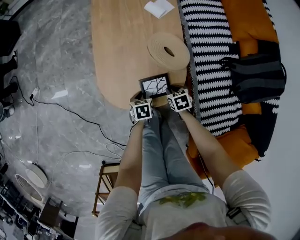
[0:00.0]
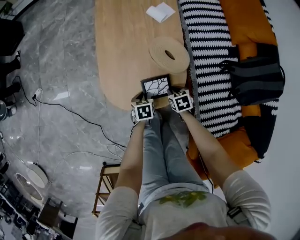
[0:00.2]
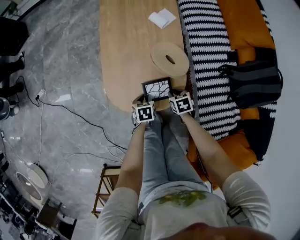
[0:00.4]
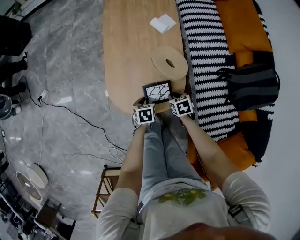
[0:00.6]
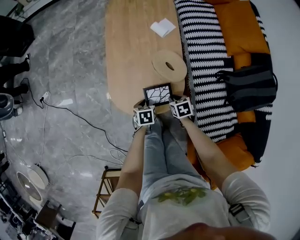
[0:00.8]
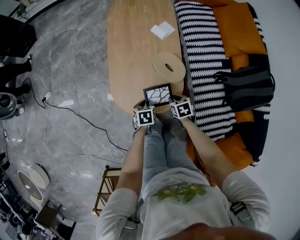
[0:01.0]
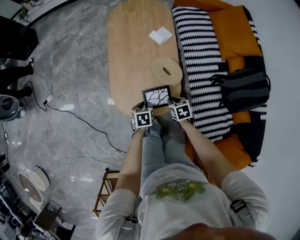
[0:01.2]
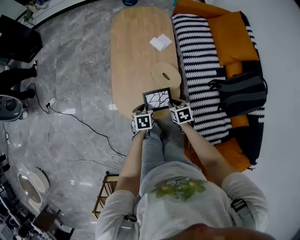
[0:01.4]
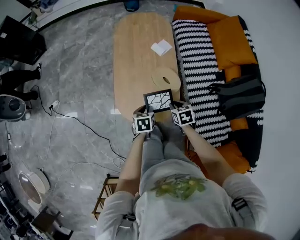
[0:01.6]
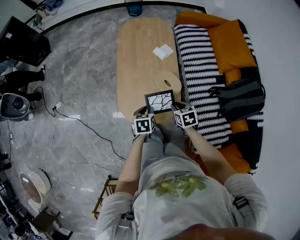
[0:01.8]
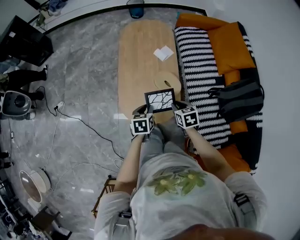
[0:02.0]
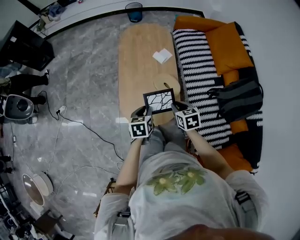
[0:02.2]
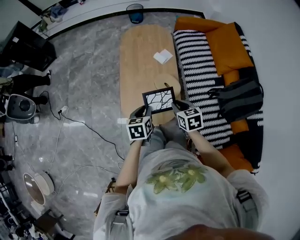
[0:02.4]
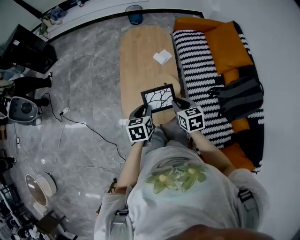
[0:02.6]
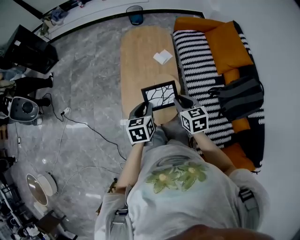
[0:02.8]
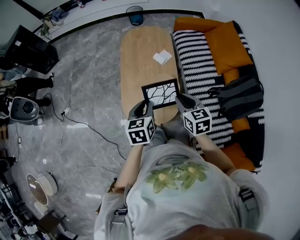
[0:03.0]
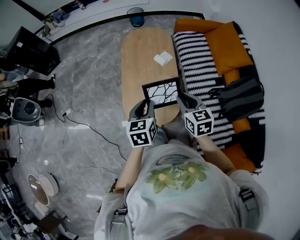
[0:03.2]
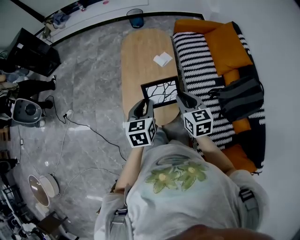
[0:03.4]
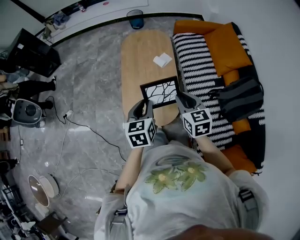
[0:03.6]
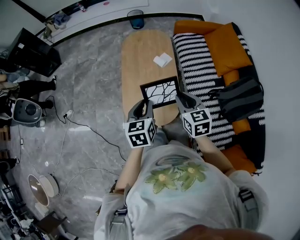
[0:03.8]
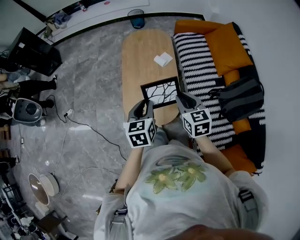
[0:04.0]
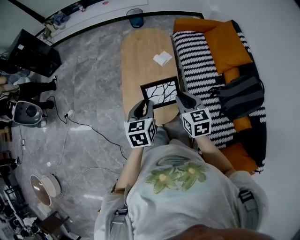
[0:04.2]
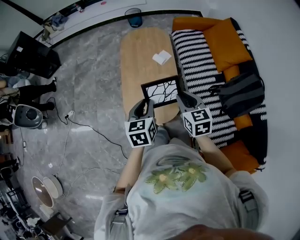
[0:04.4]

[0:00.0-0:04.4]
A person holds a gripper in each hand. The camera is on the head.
0.0 to 1.4 s: Both grippers travel together upward, roughly 20 cm.
1.4 to 3.0 s: The grippers both shift upward by approximately 30 cm. The right gripper turns by about 30 degrees, while the left gripper swivels about 20 degrees.
3.0 to 4.4 s: The grippers stay close to where they were, moving slightly.

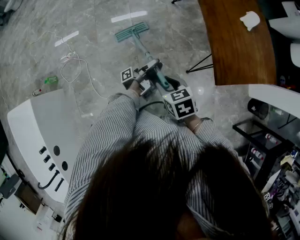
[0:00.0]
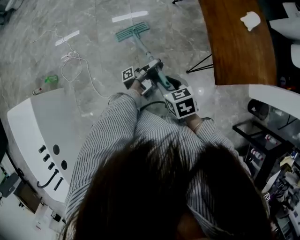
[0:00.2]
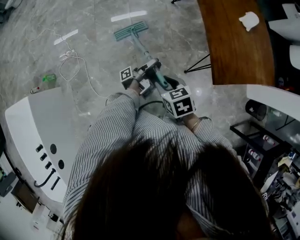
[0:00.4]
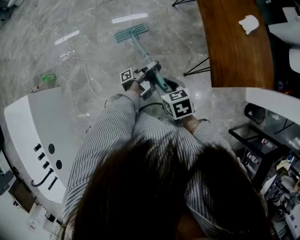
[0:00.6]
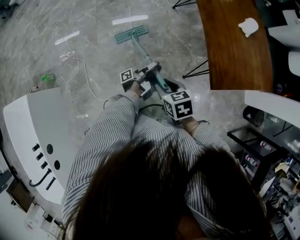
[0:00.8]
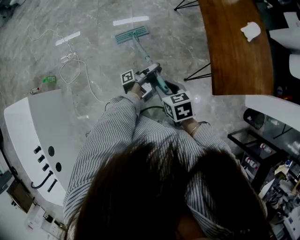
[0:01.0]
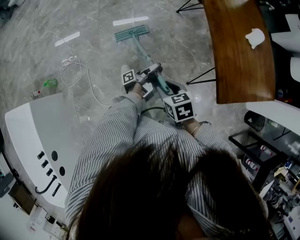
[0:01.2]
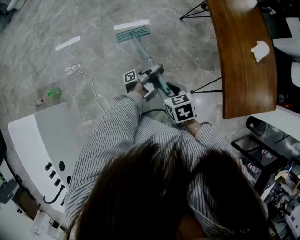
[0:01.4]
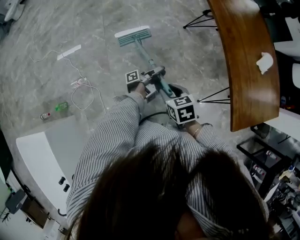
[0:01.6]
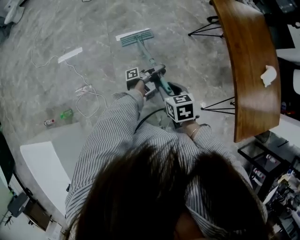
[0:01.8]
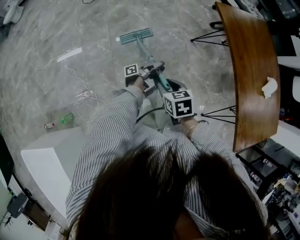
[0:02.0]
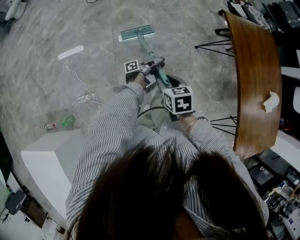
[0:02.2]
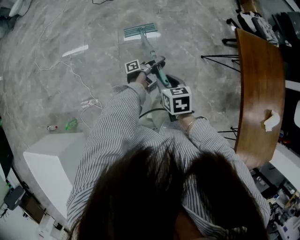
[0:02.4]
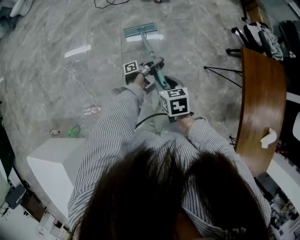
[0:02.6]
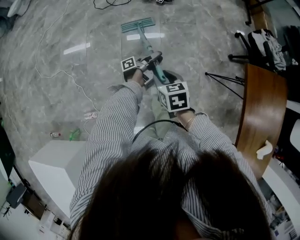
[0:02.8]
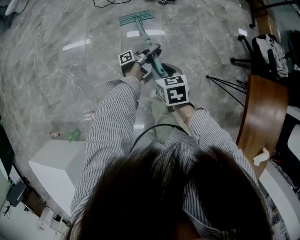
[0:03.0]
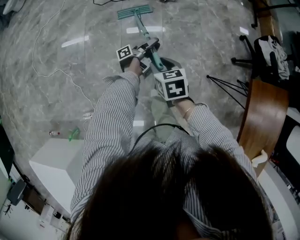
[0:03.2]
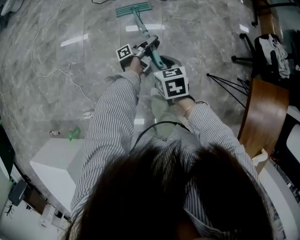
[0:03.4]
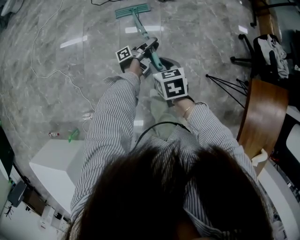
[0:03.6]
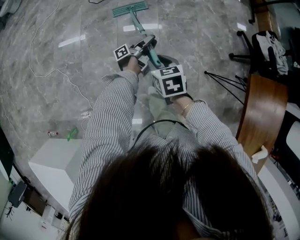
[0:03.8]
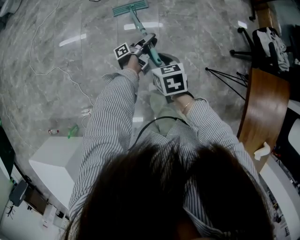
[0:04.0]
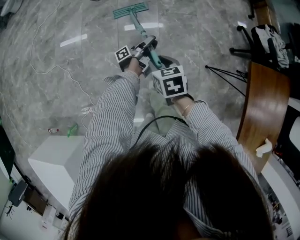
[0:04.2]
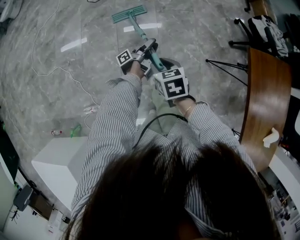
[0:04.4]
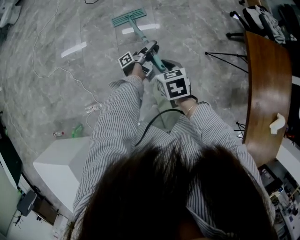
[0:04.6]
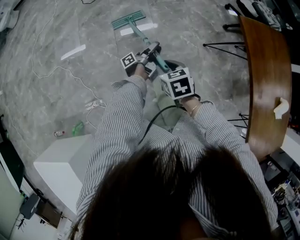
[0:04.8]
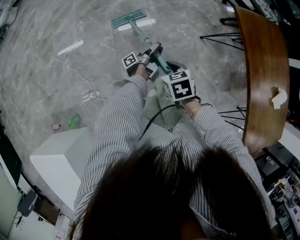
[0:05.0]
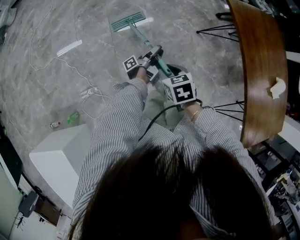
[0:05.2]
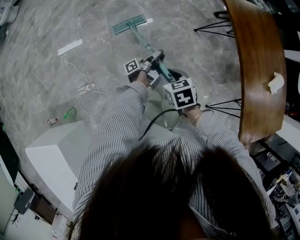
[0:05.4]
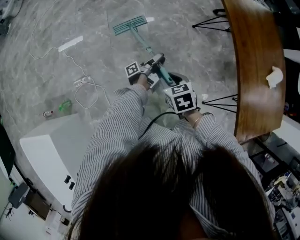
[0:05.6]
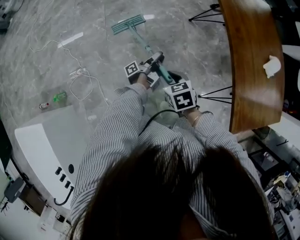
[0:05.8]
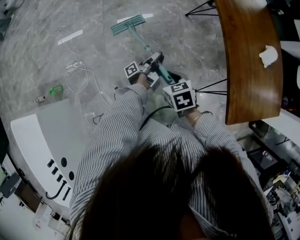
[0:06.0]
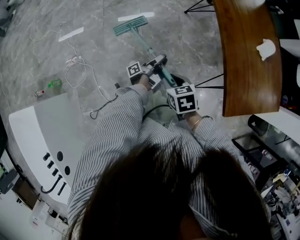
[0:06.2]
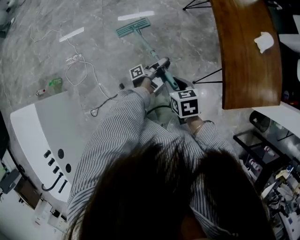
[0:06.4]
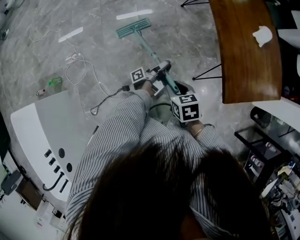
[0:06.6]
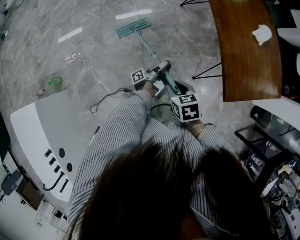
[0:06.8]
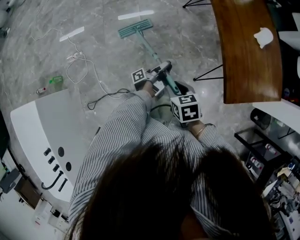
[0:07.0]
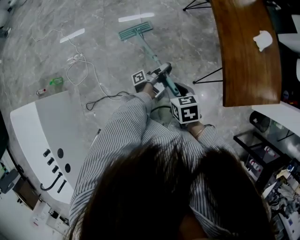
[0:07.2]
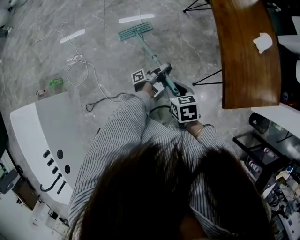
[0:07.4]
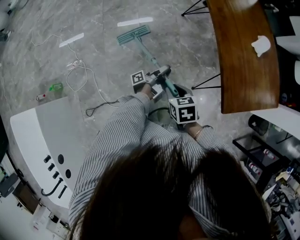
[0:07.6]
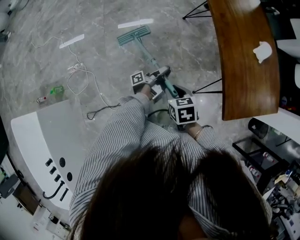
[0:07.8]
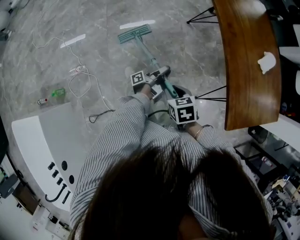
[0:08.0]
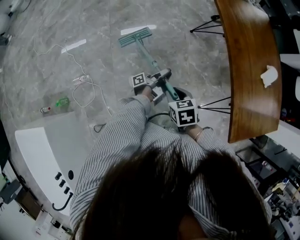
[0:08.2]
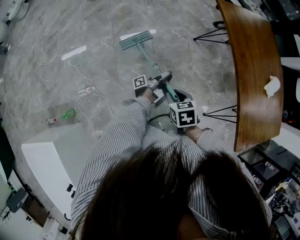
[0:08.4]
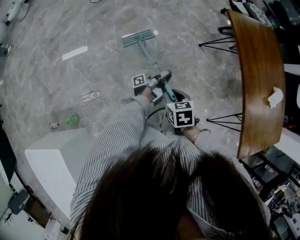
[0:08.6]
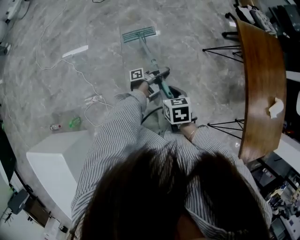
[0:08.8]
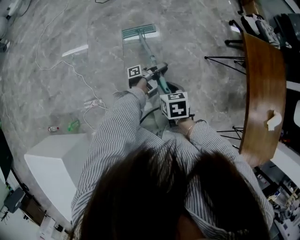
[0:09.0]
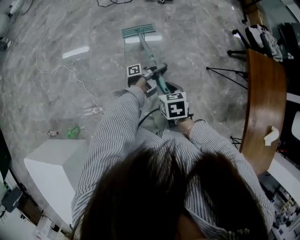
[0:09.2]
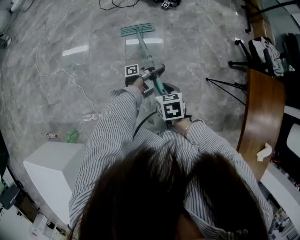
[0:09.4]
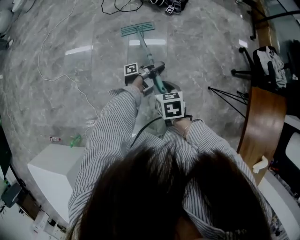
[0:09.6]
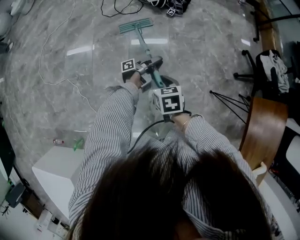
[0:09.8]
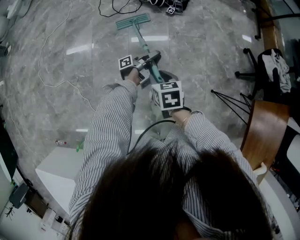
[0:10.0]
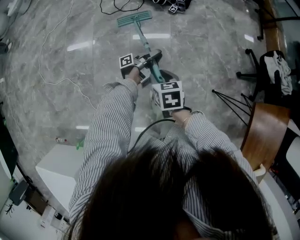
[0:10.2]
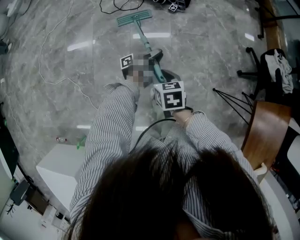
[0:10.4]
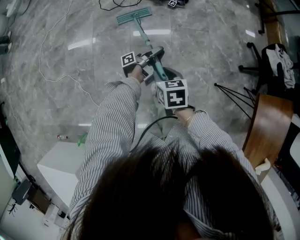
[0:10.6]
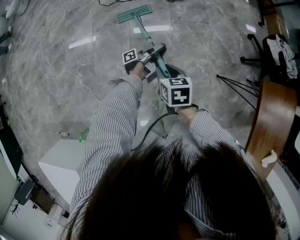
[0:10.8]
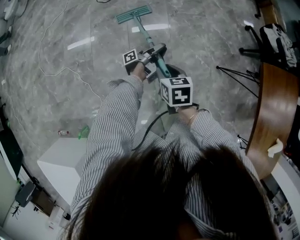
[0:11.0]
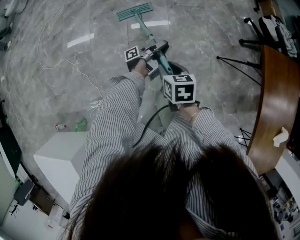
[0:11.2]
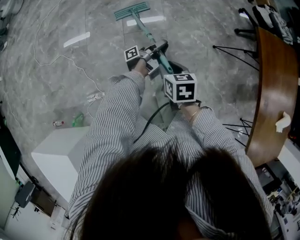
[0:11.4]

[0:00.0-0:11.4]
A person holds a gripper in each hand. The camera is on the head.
0.0 to 1.4 s: The right gripper moves some 15 cm.
1.4 to 2.8 s: The right gripper ends up approximately 70 cm from where it was.
4.2 to 5.6 s: The right gripper changes place by about 50 cm.
5.6 to 7.2 s: The right gripper shifts by approximately 35 cm.
7.2 to 8.6 s: The right gripper shifts by approximately 40 cm.
8.6 to 10.0 s: The right gripper shifts by approximately 60 cm.
10.0 to 11.4 s: The right gripper shifts by roughly 35 cm.

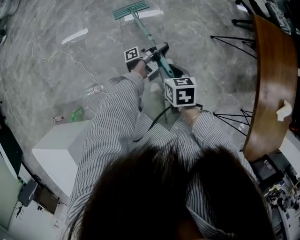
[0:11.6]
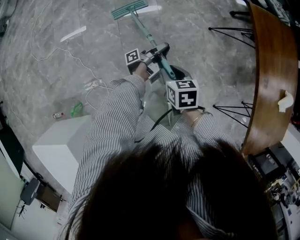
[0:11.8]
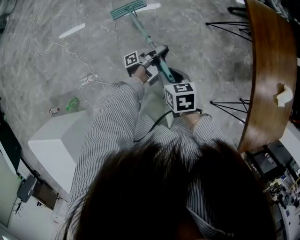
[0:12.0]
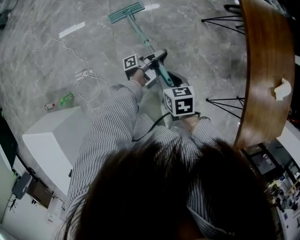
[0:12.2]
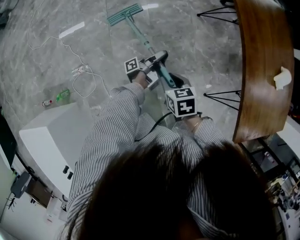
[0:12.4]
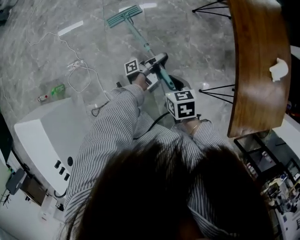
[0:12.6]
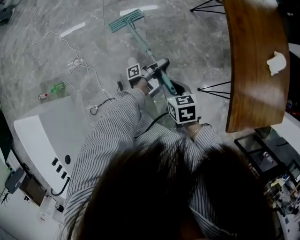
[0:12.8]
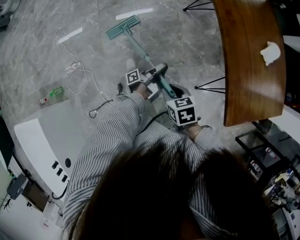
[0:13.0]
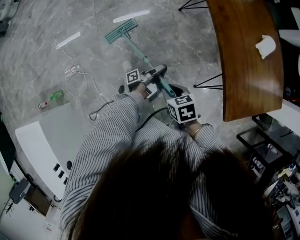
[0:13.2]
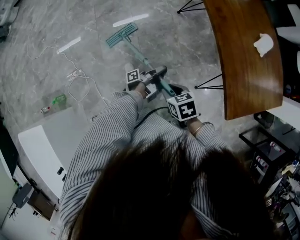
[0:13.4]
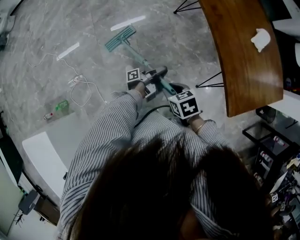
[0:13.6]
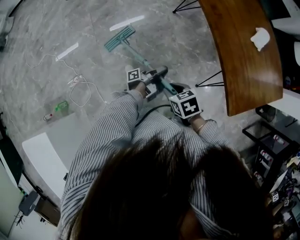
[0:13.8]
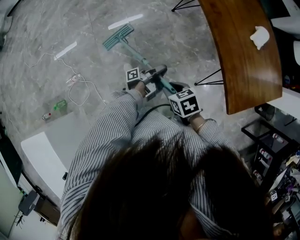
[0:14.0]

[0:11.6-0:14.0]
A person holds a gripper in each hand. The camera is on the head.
11.6 to 12.8 s: The right gripper ends up about 50 cm from where it was.
12.8 to 14.0 s: The right gripper shifts by roughly 5 cm.

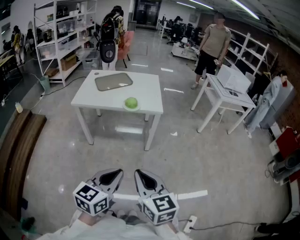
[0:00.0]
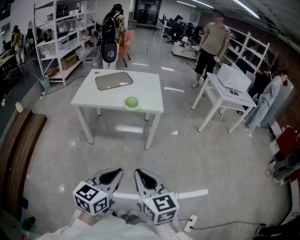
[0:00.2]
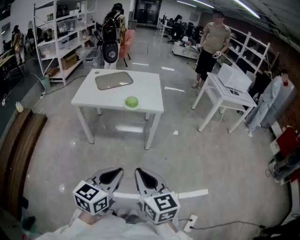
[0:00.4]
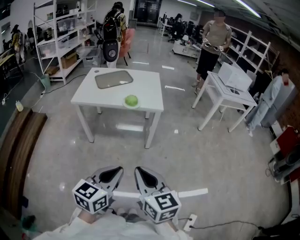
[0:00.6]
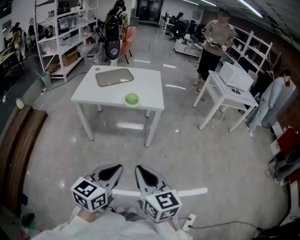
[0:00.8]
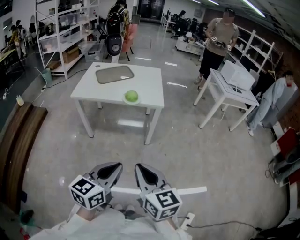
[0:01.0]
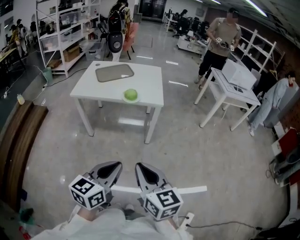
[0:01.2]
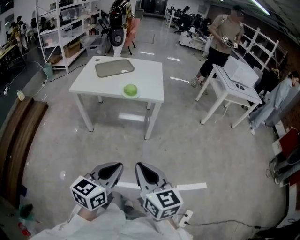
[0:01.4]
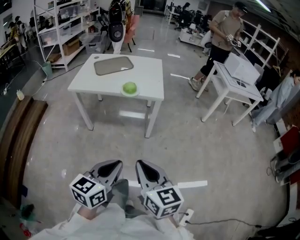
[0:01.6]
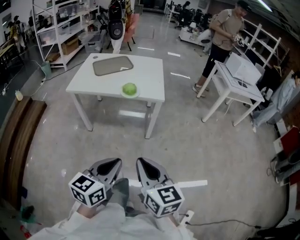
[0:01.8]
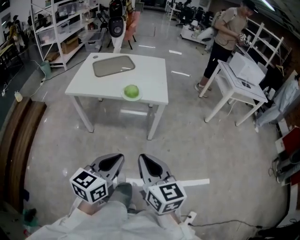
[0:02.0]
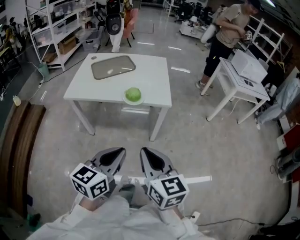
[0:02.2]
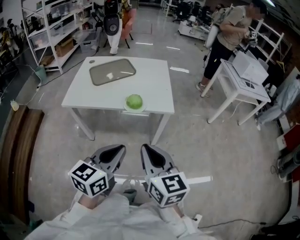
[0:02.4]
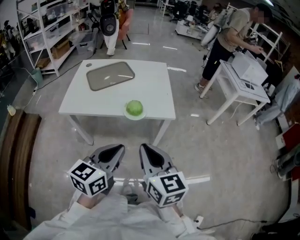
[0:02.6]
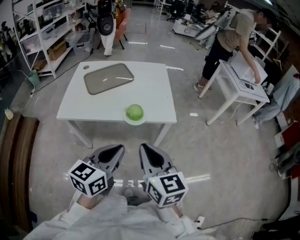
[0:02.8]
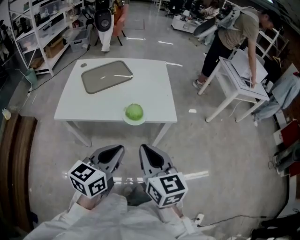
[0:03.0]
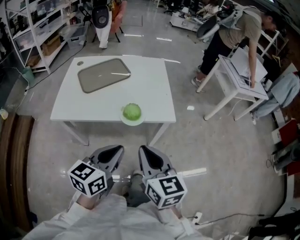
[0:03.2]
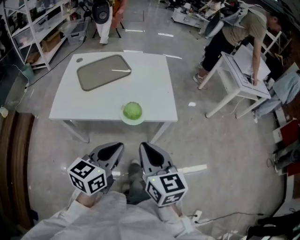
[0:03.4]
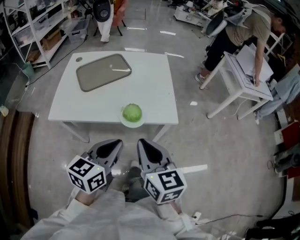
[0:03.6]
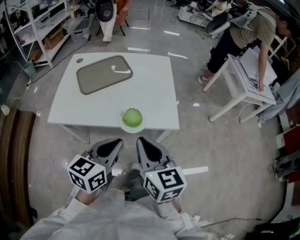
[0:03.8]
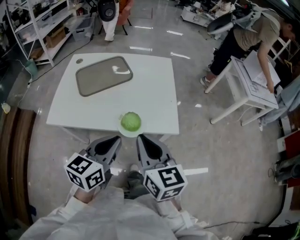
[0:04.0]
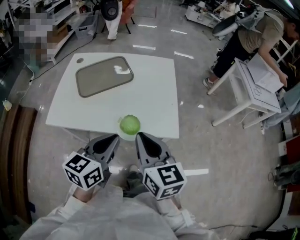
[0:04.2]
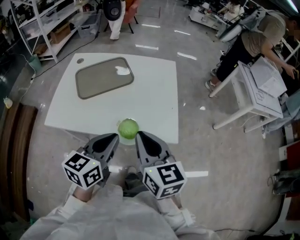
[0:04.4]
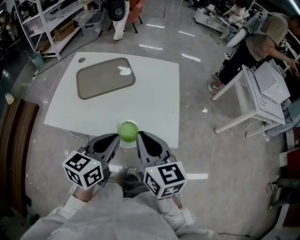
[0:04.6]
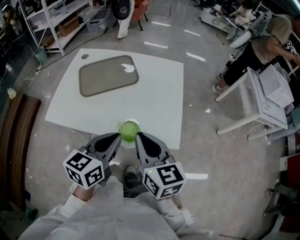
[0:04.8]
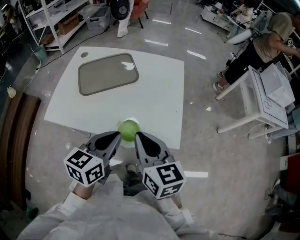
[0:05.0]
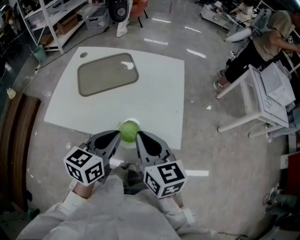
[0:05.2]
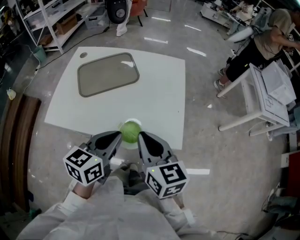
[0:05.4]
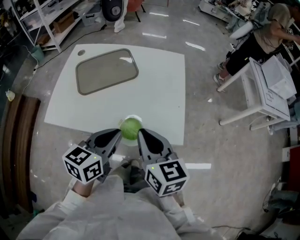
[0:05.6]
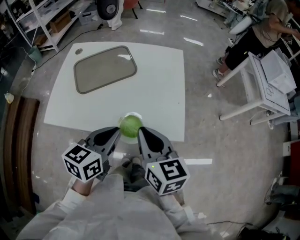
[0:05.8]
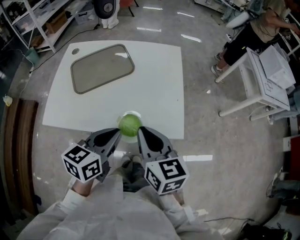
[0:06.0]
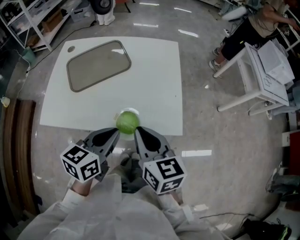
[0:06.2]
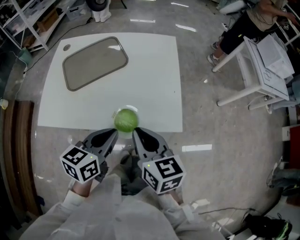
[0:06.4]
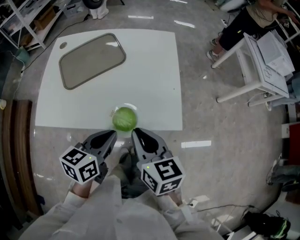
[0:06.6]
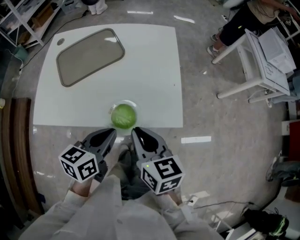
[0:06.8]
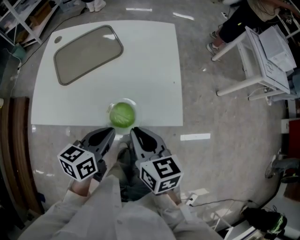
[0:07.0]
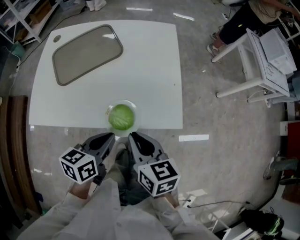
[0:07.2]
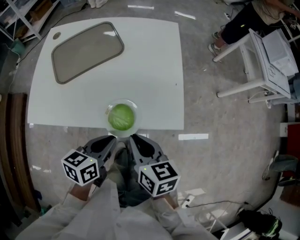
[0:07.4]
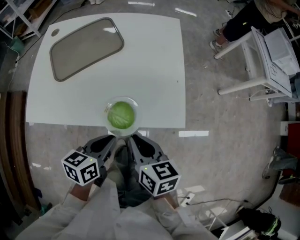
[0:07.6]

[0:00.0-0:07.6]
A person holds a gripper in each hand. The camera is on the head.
0.0 to 1.6 s: The right gripper shifts some 5 cm to the right. The left gripper changes place by approximately 5 cm.
1.6 to 3.0 s: Both grippers move forward, some 35 cm.
3.0 to 4.6 s: Both grippers travel together forward, approximately 25 cm.
4.6 to 6.0 s: The grippers stay close to where they were, moving slightly.
6.0 to 7.6 s: Both grippers travel together downward, roughly 15 cm.
